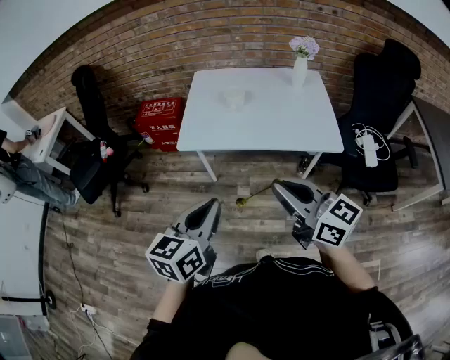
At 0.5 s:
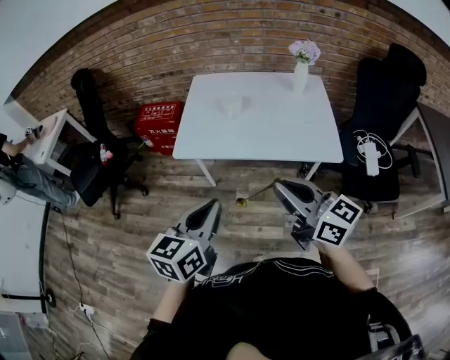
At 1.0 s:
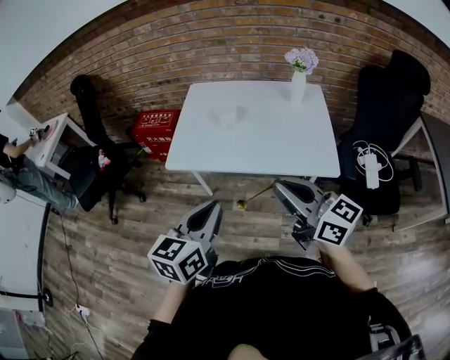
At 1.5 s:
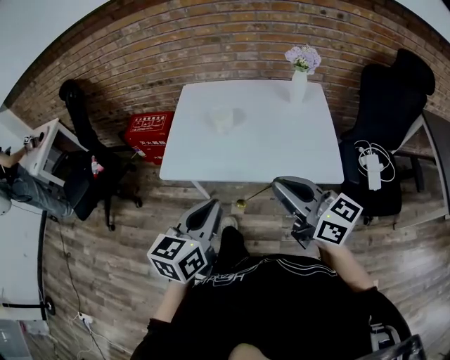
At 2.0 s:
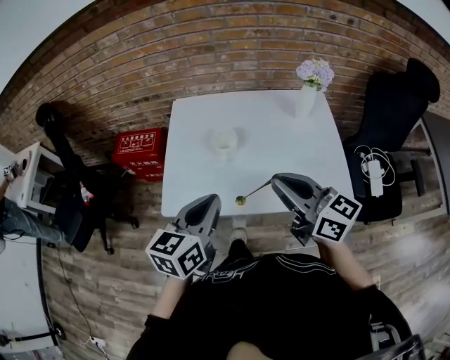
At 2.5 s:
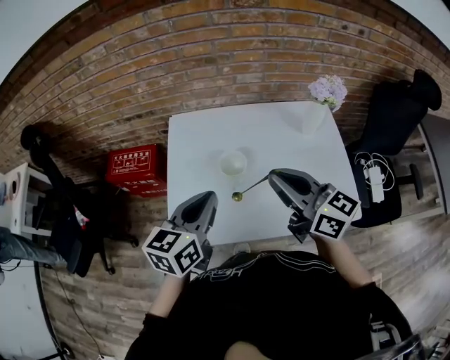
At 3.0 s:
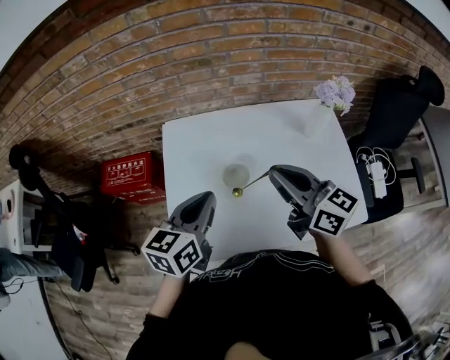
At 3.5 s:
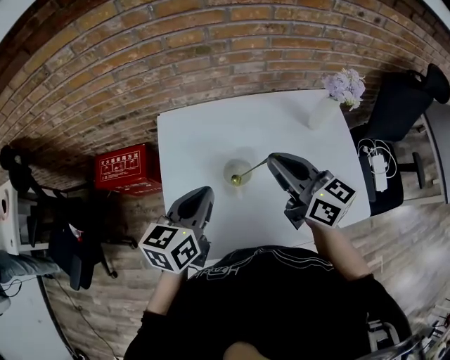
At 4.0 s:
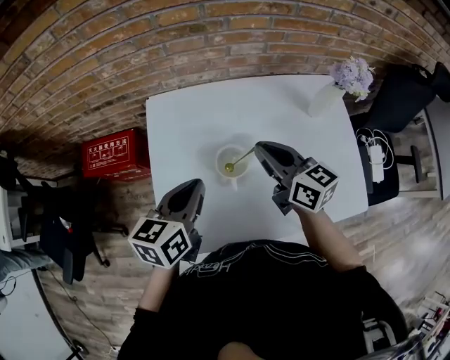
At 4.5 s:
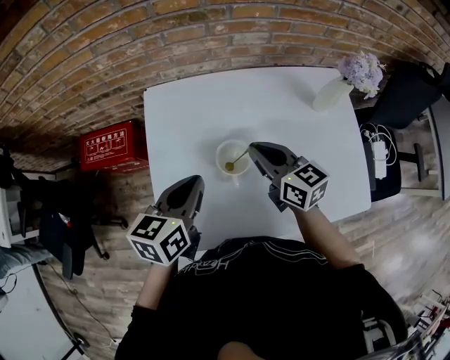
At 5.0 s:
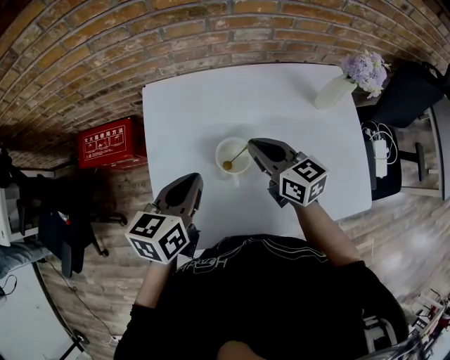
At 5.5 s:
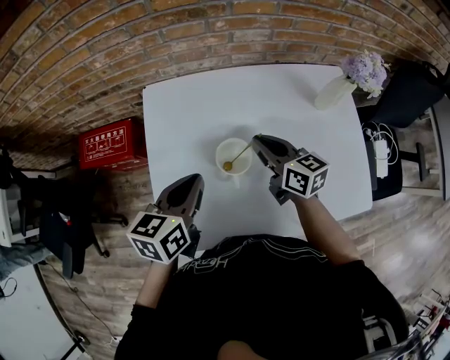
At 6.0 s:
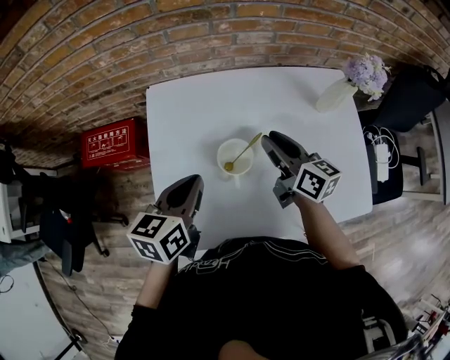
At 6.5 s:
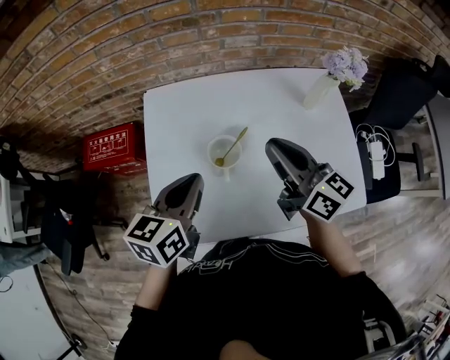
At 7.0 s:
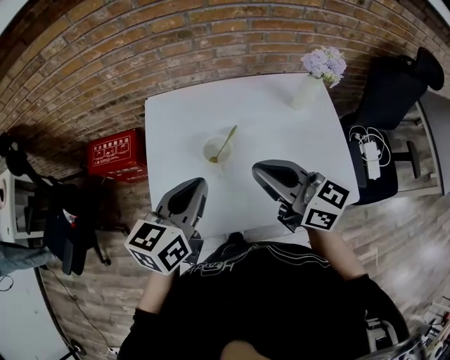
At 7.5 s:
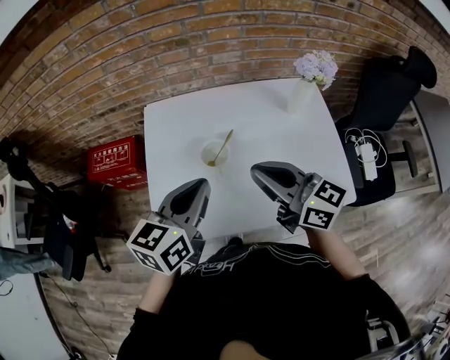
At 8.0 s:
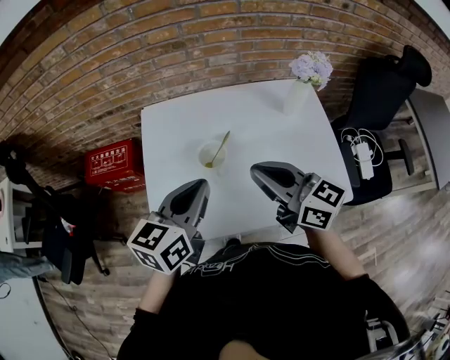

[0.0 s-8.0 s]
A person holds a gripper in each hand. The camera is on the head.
0.0 to 2.0 s: The two grippers go roughly 30 cm forward.
2.0 to 4.0 s: The left gripper moves forward, about 25 cm, while the right gripper moves forward and downward, approximately 30 cm.
4.0 to 6.0 s: The right gripper heads downward, covering approximately 5 cm, and opens.
6.0 to 8.0 s: The right gripper moves backward and upward, approximately 20 cm, rotates approximately 20 degrees, and closes its fingers, while the left gripper travels upward, backward and to the right by about 15 cm.

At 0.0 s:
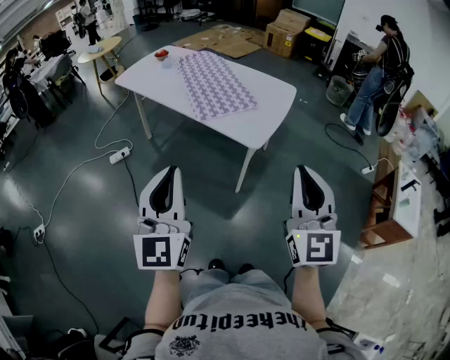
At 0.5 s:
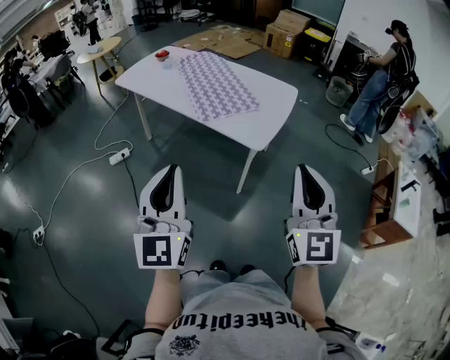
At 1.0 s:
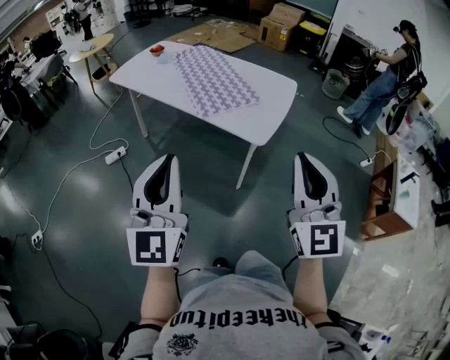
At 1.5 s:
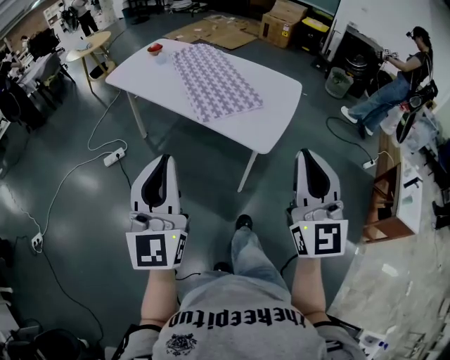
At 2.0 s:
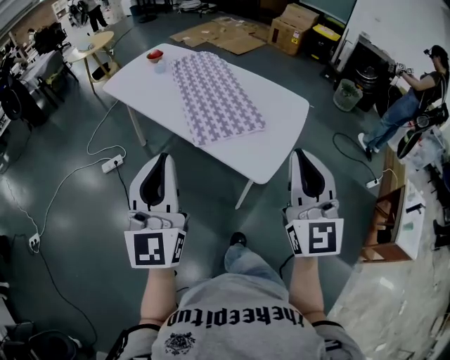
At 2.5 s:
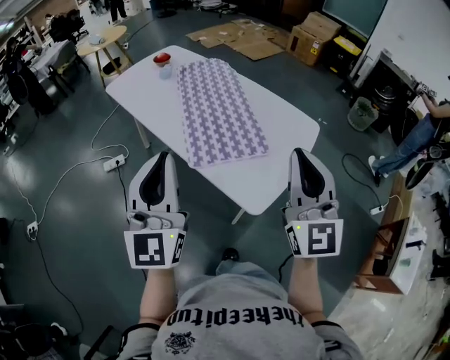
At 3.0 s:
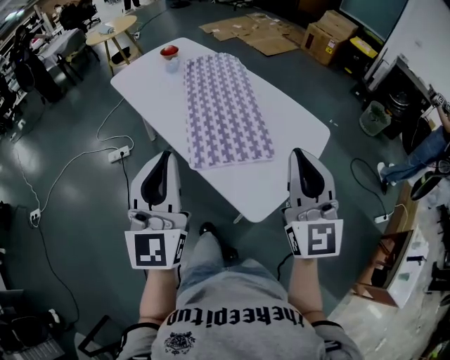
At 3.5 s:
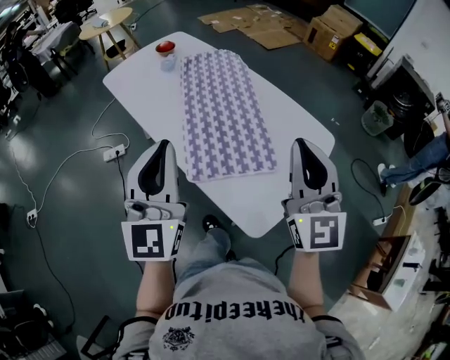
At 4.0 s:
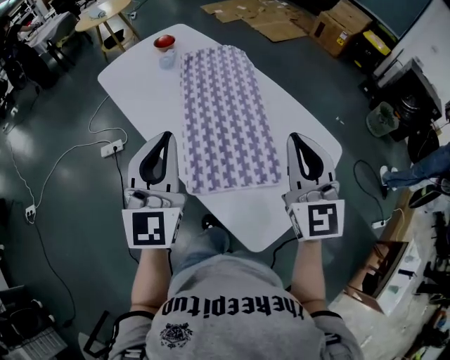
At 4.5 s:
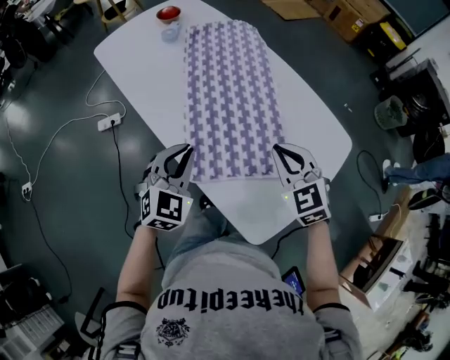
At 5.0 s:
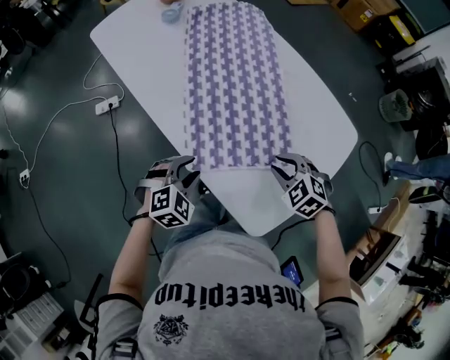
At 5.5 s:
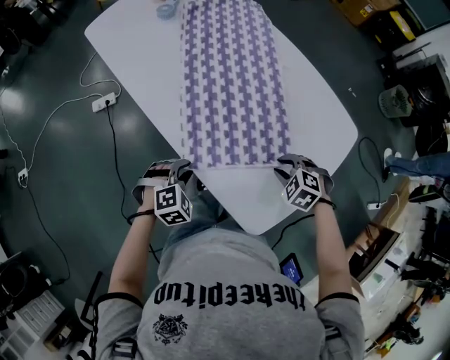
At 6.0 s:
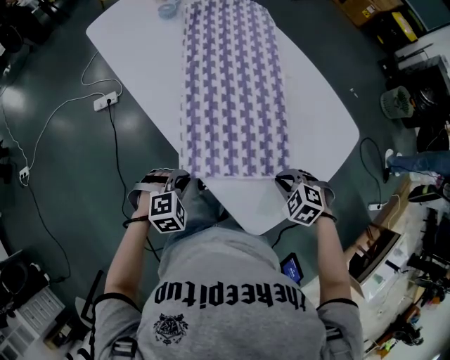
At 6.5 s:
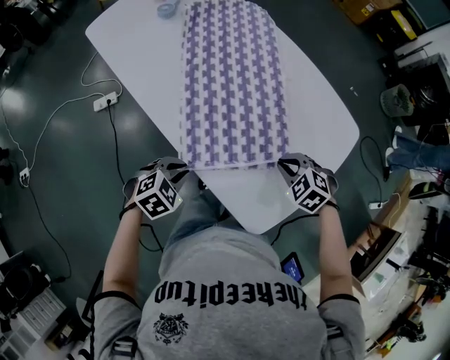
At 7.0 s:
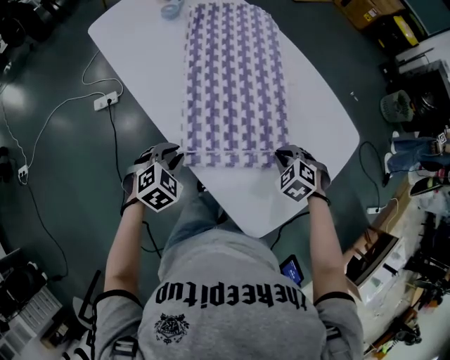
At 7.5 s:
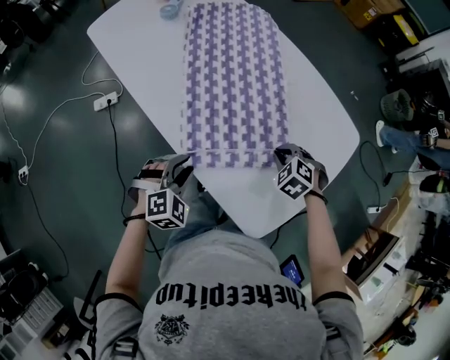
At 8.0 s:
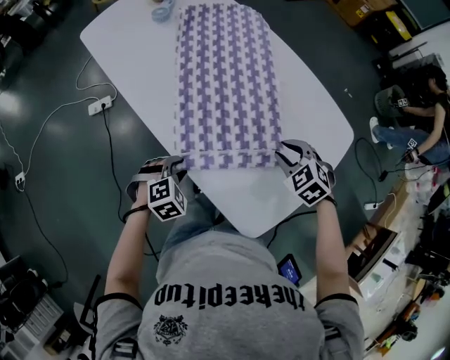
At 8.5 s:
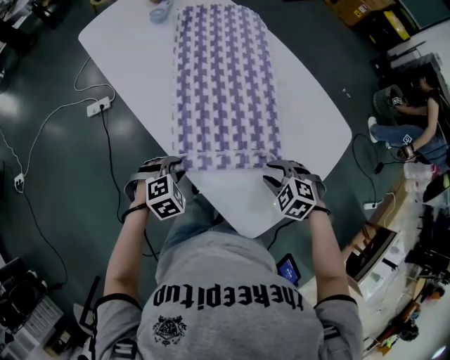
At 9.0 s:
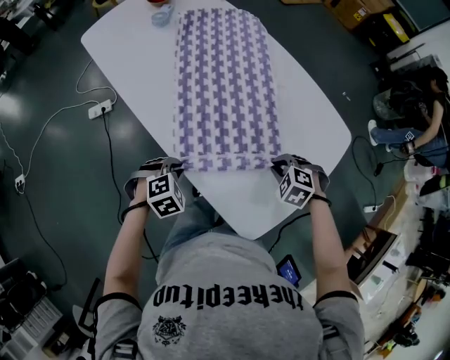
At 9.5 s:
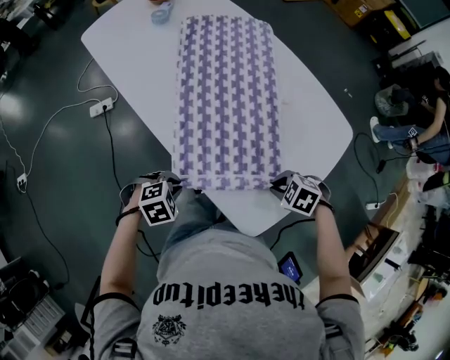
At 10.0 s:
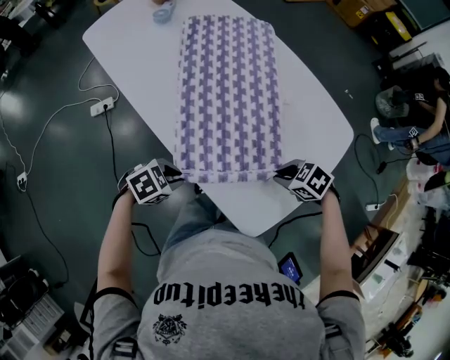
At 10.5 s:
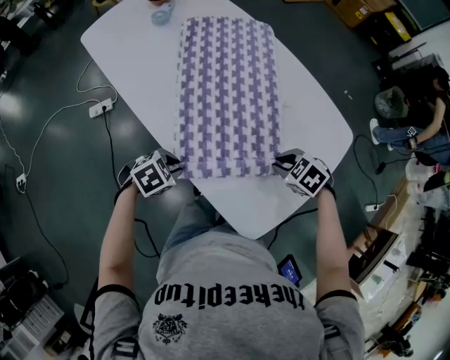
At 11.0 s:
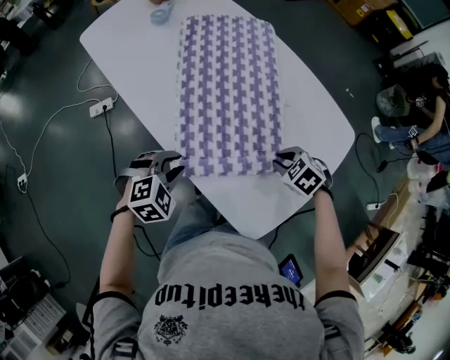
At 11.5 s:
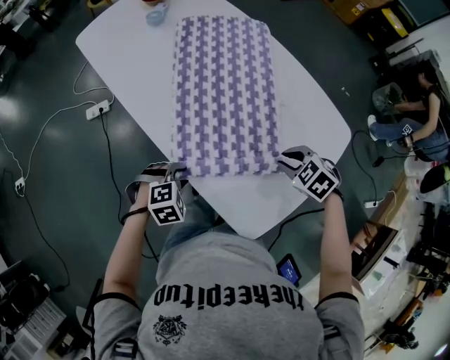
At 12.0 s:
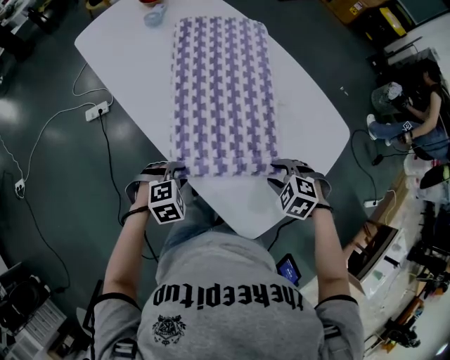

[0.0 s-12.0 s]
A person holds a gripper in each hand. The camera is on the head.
0.0 to 2.0 s: Both grippers move forward, some 25 cm.
2.0 to 4.0 s: The grippers both shift forward by approximately 40 cm.
4.0 to 6.0 s: The grippers both shift downward by about 40 cm. The left gripper tilts its fingers about 70 degrees downward, and opens, then closes again. Meanwhile the right gripper angles its fingers downward, by about 70 degrees, and opens, then closes again.
6.0 to 8.0 s: The right gripper moves forward and upward, roughly 15 cm; the left gripper moves forward, some 10 cm, and opens.
8.0 to 10.0 s: The left gripper turns by about 30 degrees, and closes its fingers. Meanwhile the right gripper swivels roughly 30 degrees.
10.0 to 12.0 s: The right gripper rotates approximately 30 degrees, and opens, while the left gripper changes its angle by some 30 degrees, and opens.

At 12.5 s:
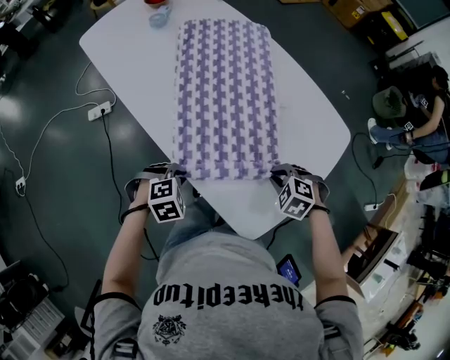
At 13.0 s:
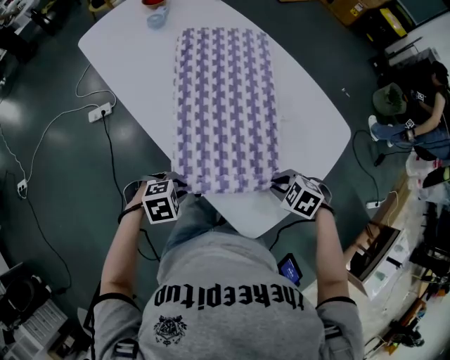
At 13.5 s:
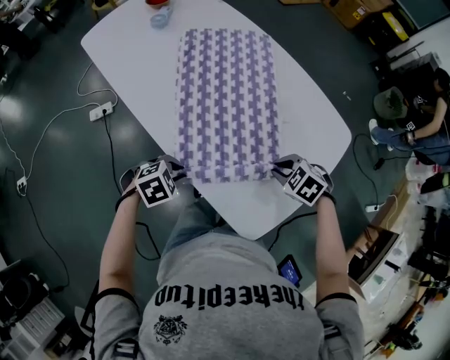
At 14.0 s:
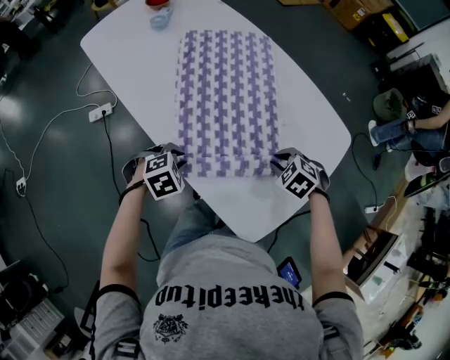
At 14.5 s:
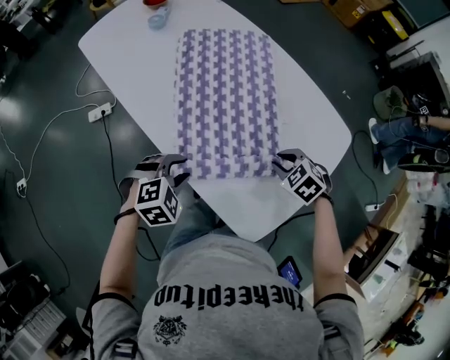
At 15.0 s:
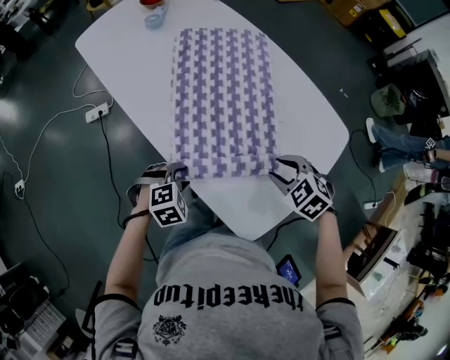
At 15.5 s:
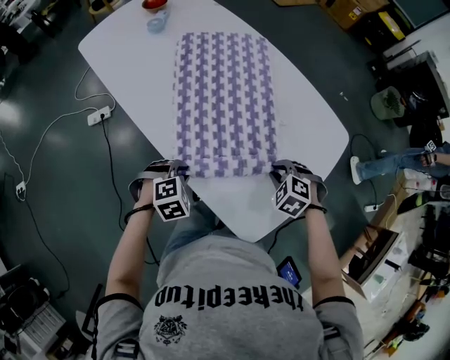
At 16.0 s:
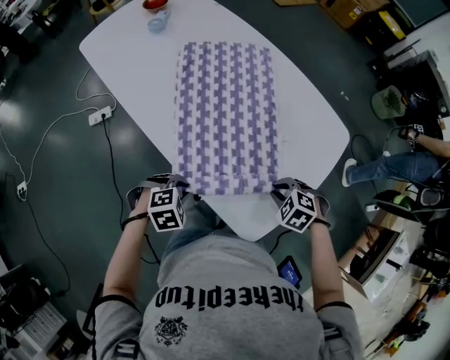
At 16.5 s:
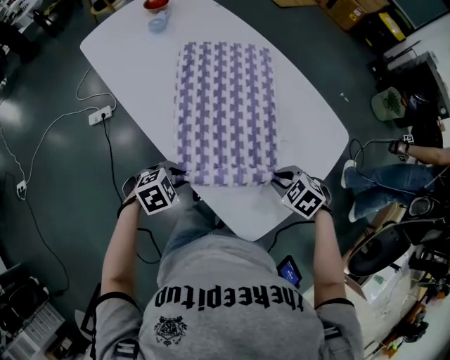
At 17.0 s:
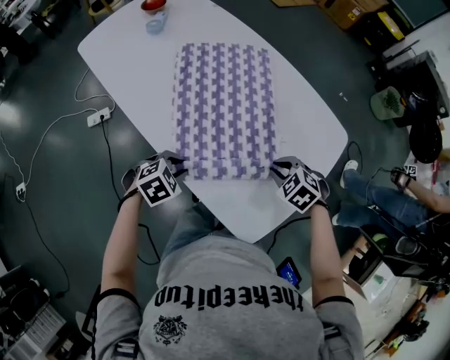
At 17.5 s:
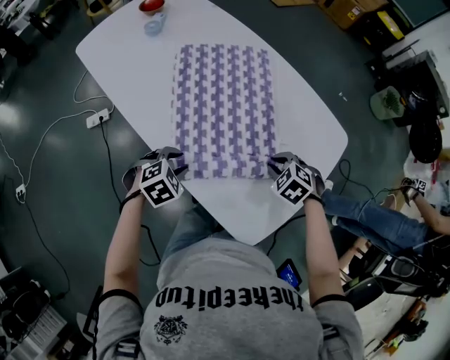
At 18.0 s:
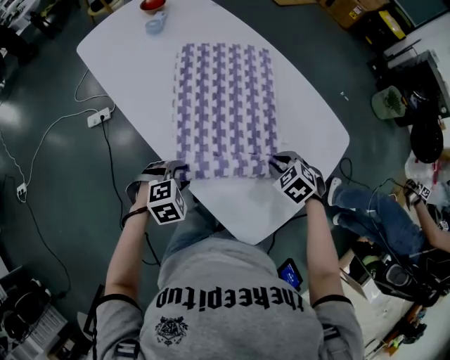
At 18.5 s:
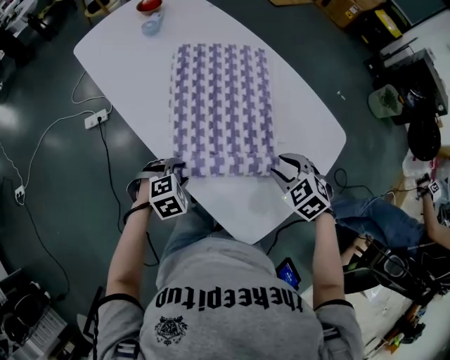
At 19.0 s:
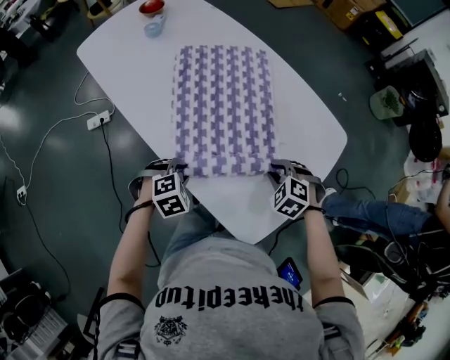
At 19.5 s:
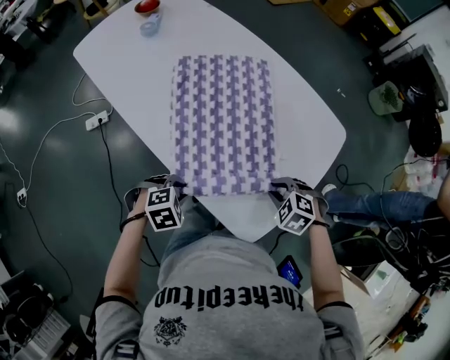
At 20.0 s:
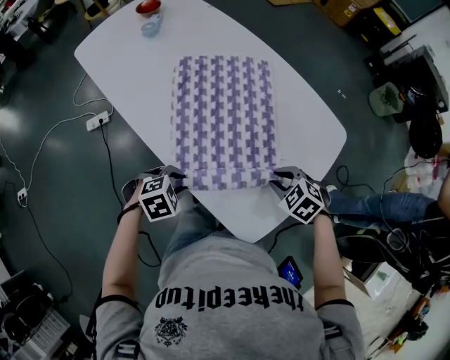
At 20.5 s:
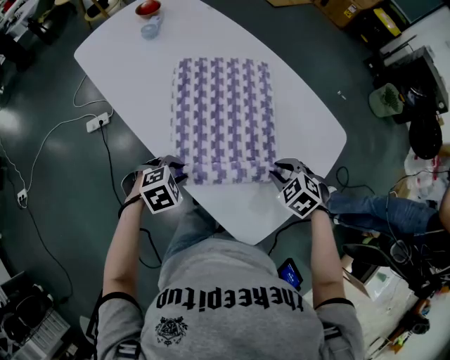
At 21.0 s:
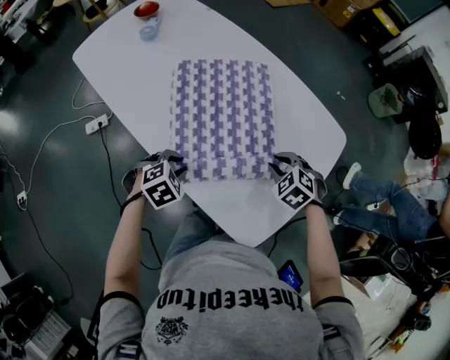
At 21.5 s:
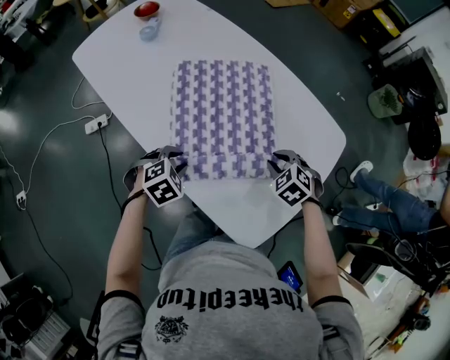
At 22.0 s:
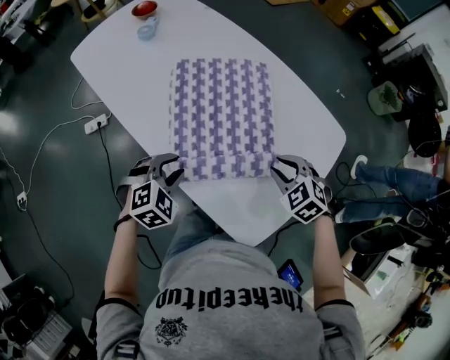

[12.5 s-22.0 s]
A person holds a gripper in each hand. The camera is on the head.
12.5 to 14.5 s: The left gripper is displaced upward by approximately 5 cm. Meanwhile the right gripper moves roughly 10 cm.
14.5 to 16.5 s: The right gripper moves roughly 10 cm. Meanwhile the left gripper shifts by roughly 5 cm.
16.5 to 18.0 s: The right gripper changes place by about 10 cm, while the left gripper ends up approximately 5 cm from where it was, and opens up.
18.0 to 20.0 s: The right gripper changes place by about 10 cm.
20.0 to 22.0 s: The left gripper shifts by roughly 10 cm, and changes its angle by some 20 degrees. The right gripper shifts by some 5 cm.
